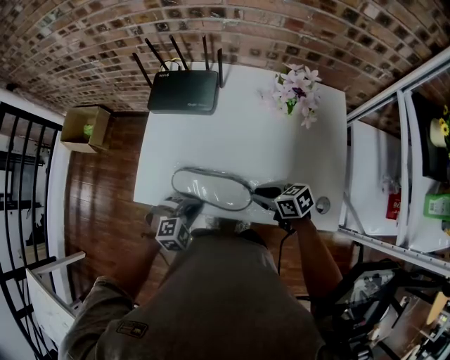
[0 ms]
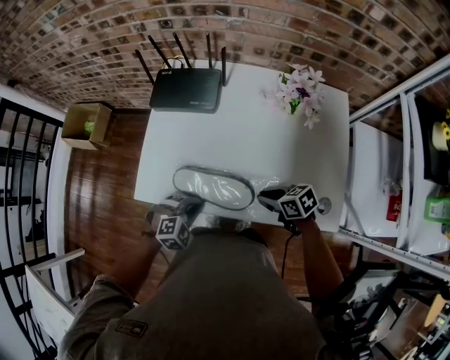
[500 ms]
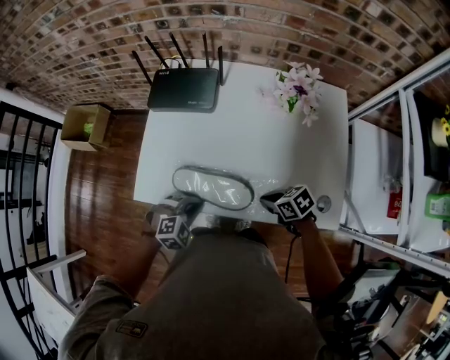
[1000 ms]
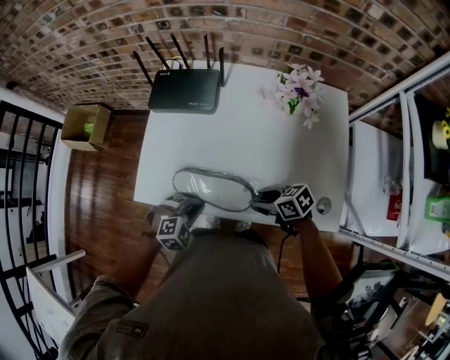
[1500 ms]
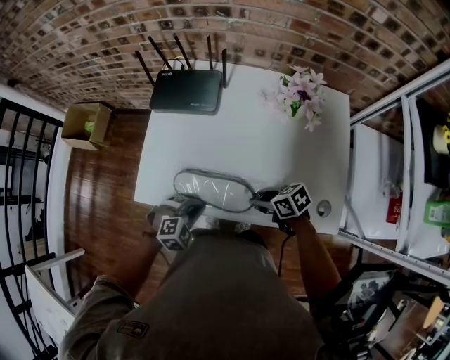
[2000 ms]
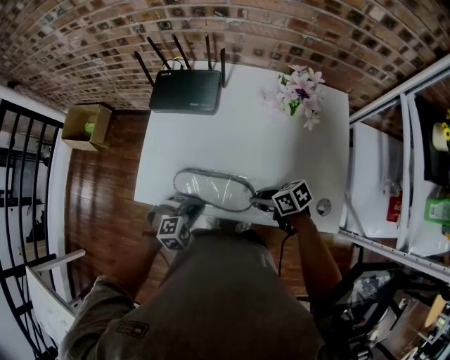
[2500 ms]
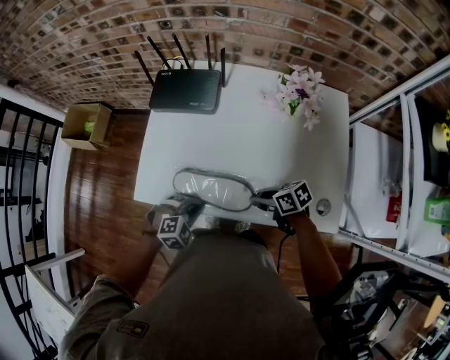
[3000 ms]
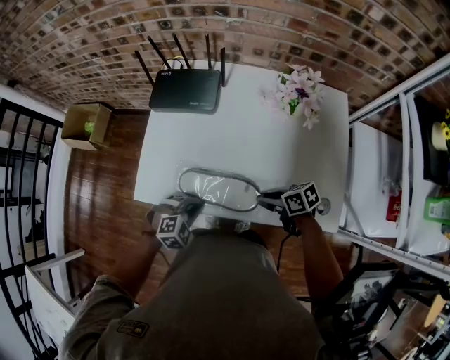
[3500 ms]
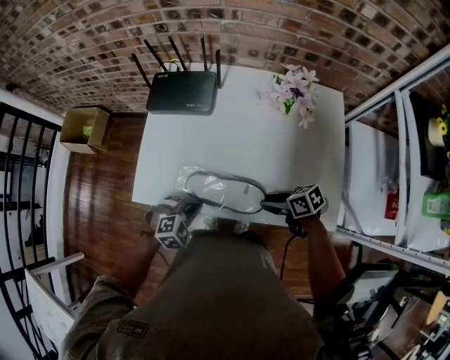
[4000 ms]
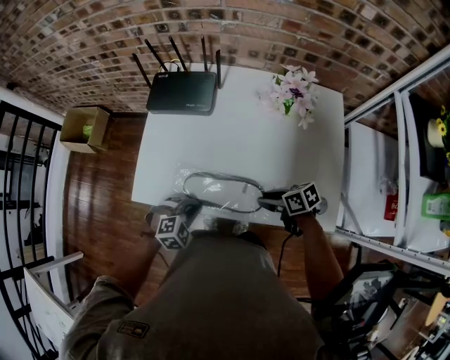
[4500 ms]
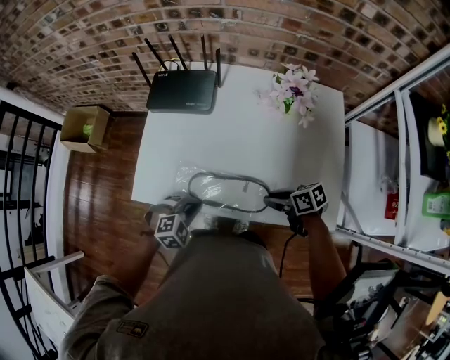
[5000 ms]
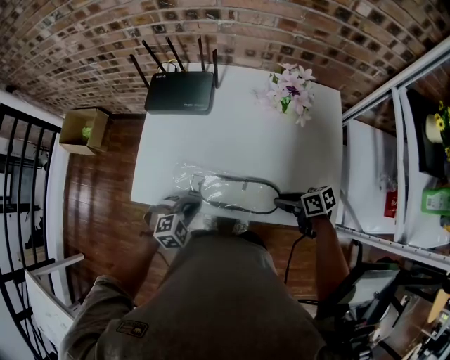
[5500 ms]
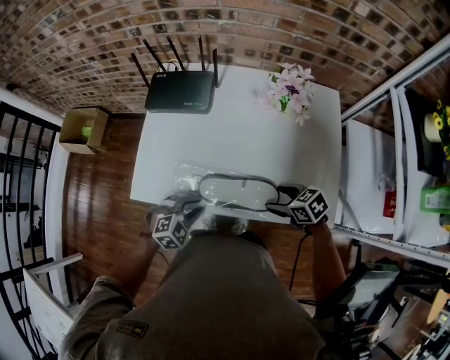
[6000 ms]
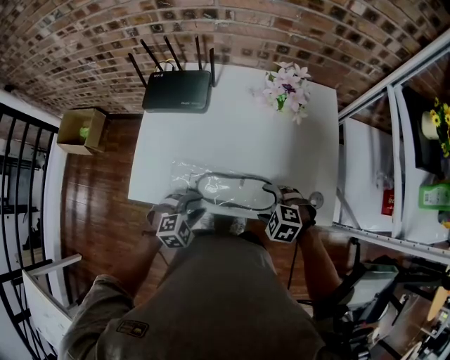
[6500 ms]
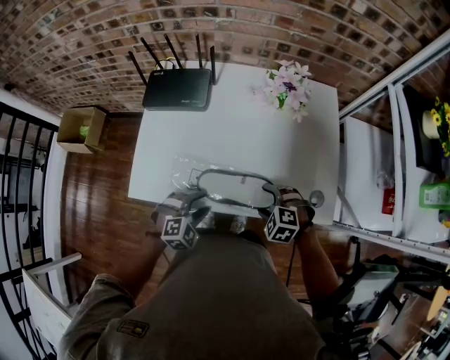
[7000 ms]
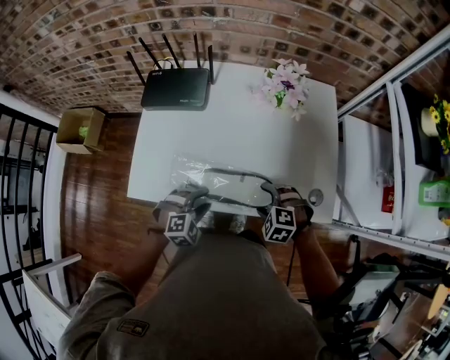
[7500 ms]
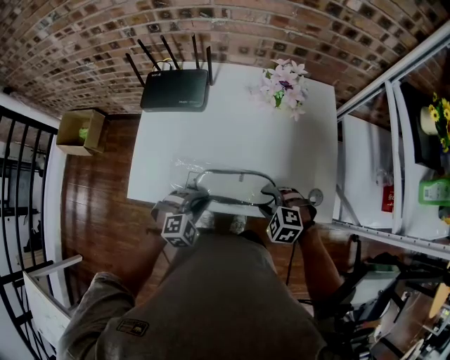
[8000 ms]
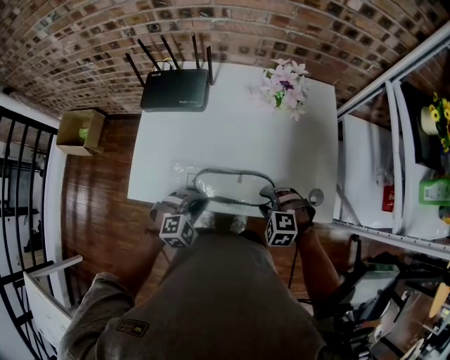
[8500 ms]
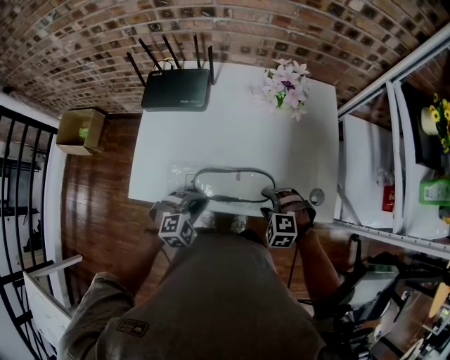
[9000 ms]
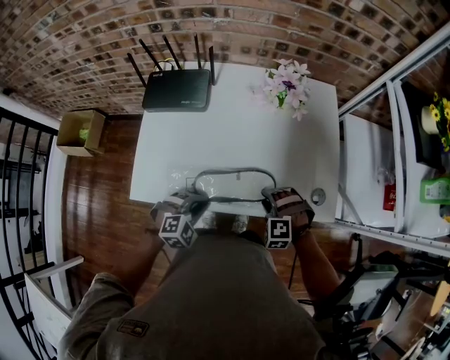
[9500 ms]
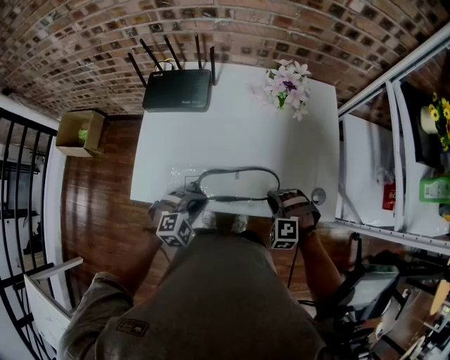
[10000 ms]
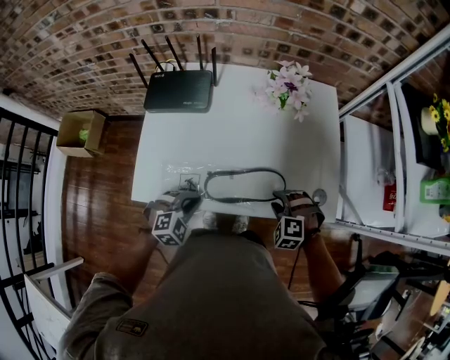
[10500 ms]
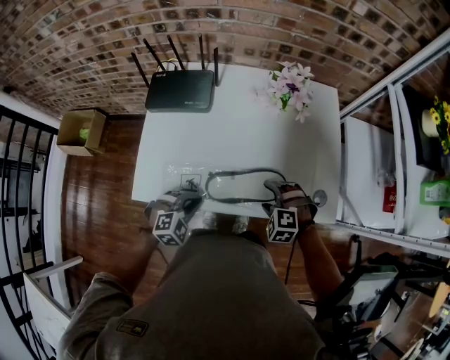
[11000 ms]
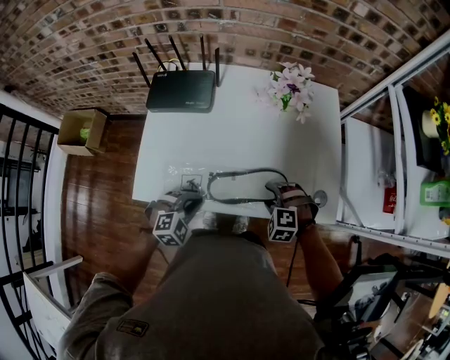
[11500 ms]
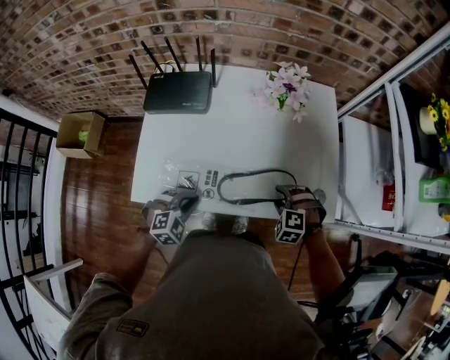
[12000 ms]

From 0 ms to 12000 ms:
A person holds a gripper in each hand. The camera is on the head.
From 0 ms to 2000 ms: There are only small adjustments of the grippers.
From 2000 ms to 4000 ms: The right gripper moves some 5 cm.
From 4000 ms to 6000 ms: The left gripper opens, while the right gripper turns by about 20 degrees, and opens up.
From 6000 ms to 8000 ms: The right gripper rolls counterclockwise, seen from behind, by roughly 50 degrees. Meanwhile the left gripper opens, then closes once more.
From 8000 ms to 10000 ms: The right gripper swivels some 20 degrees.
From 10000 ms to 12000 ms: The grippers stay close to where they were, moving slightly.

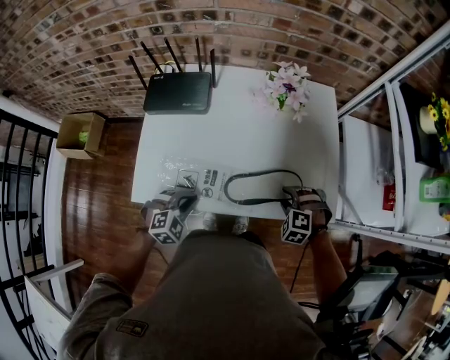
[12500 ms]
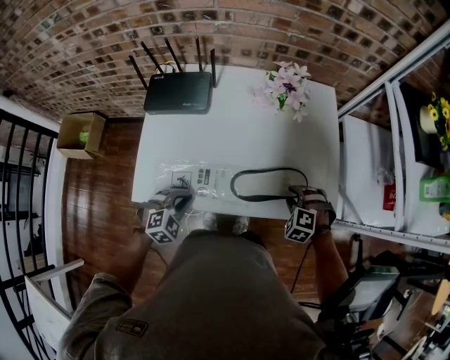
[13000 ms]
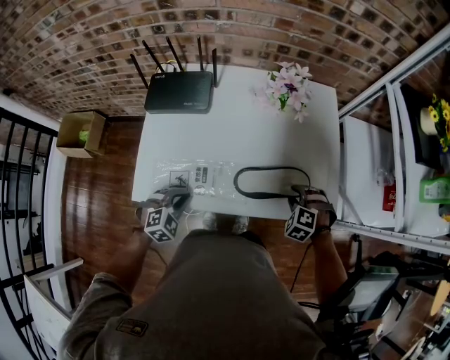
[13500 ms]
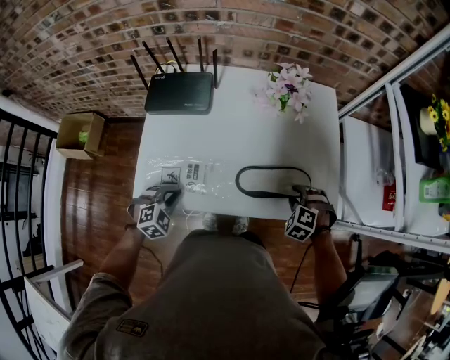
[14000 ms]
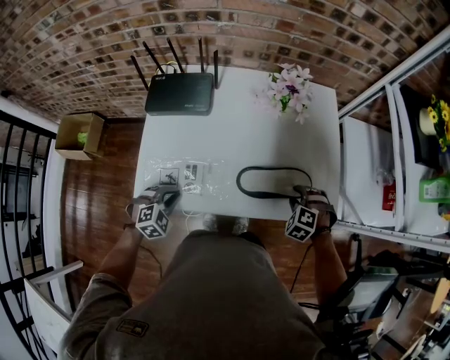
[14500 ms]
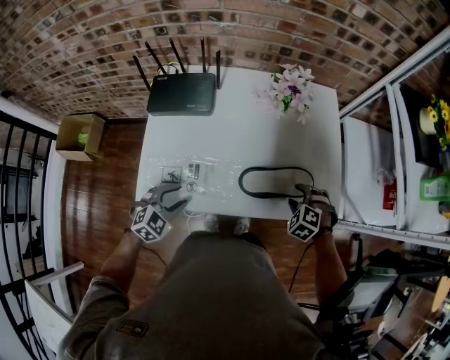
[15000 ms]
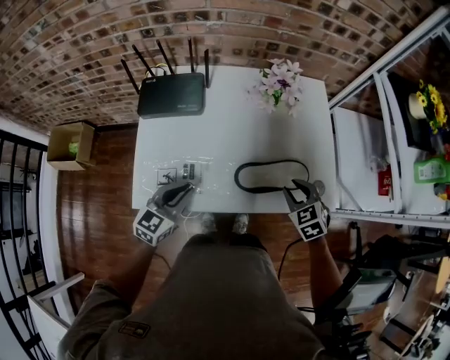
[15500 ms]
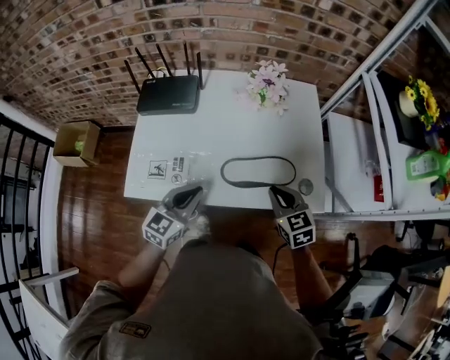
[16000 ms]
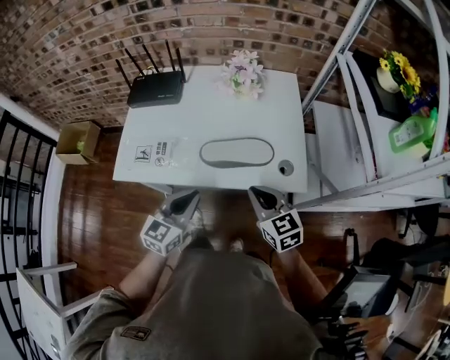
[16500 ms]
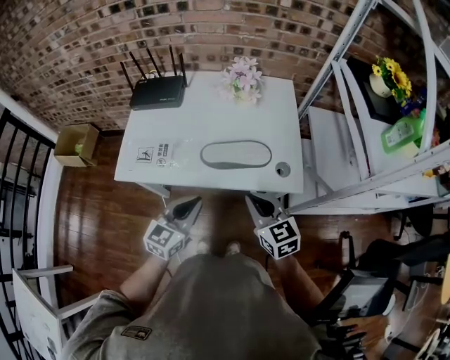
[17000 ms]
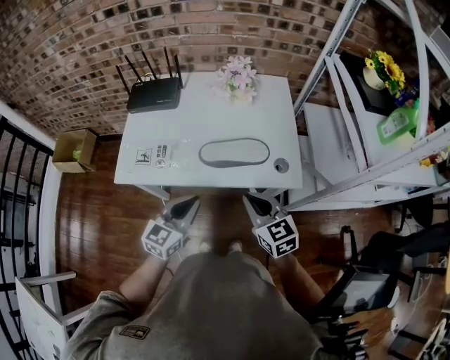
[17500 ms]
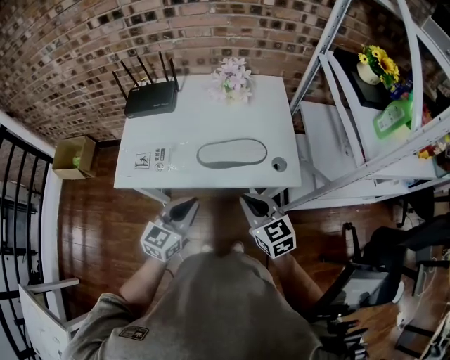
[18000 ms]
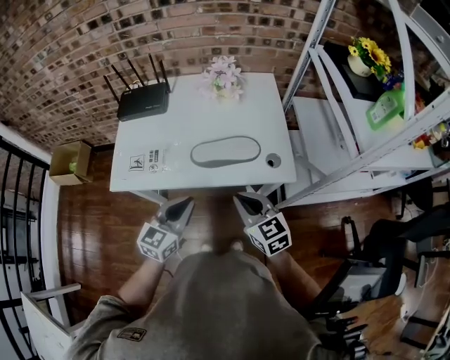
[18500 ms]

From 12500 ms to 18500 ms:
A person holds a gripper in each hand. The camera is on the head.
From 12500 ms to 14500 ms: The left gripper travels to the left by some 5 cm.
From 14500 ms to 16500 ms: The left gripper goes some 25 cm to the right and upward, tilts its fingers about 40 degrees upward, and opens, then closes again. The right gripper travels upward and backward by some 20 cm, angles its fingers upward, by roughly 40 degrees, and closes up.
From 16500 ms to 18500 ms: The right gripper ends up approximately 5 cm from where it was.

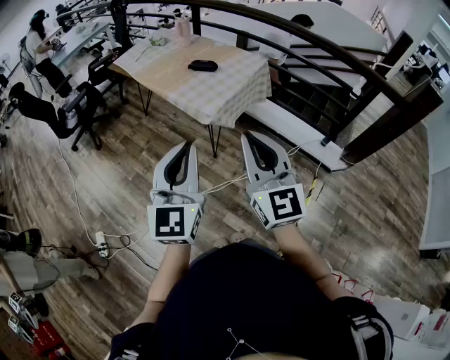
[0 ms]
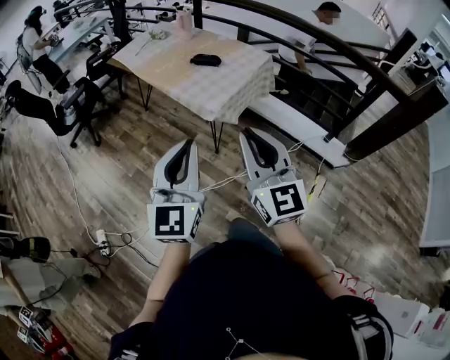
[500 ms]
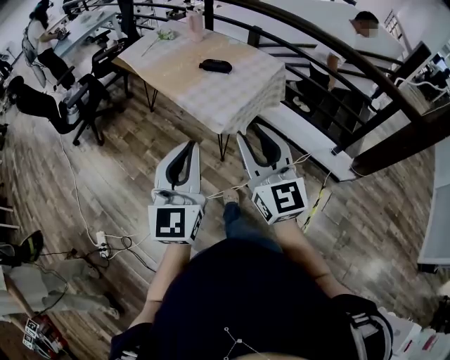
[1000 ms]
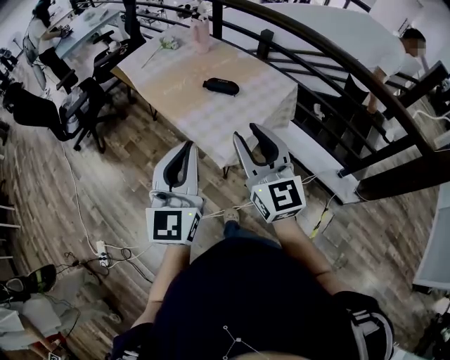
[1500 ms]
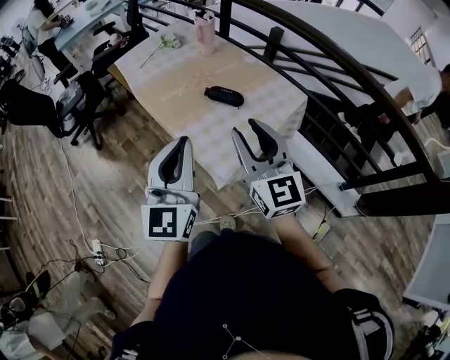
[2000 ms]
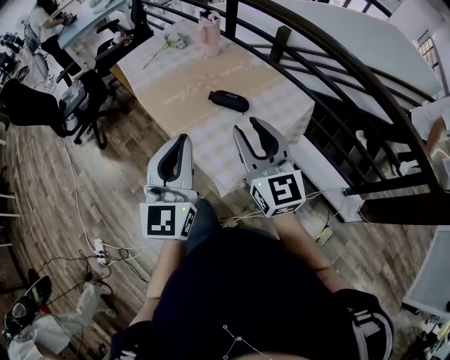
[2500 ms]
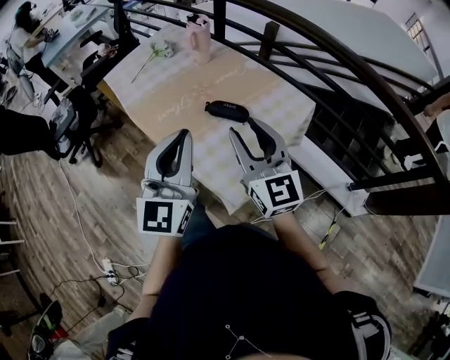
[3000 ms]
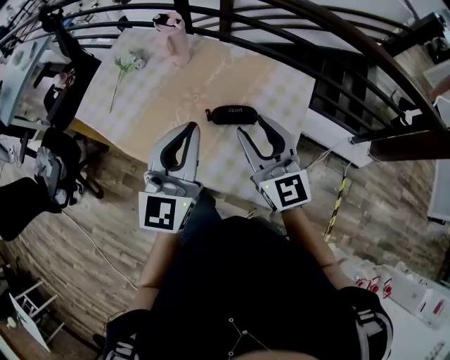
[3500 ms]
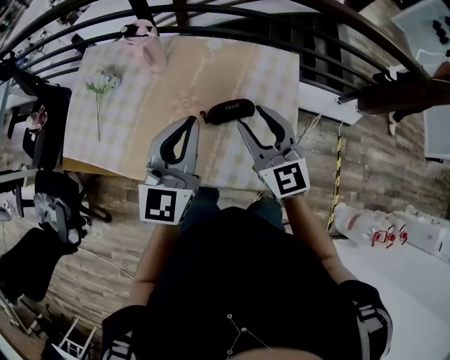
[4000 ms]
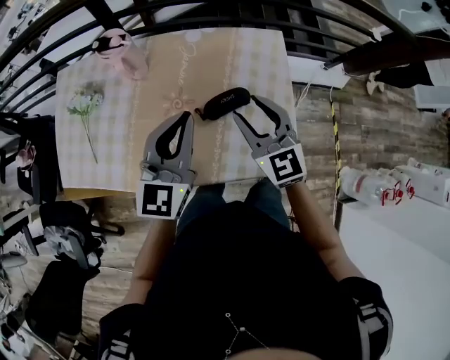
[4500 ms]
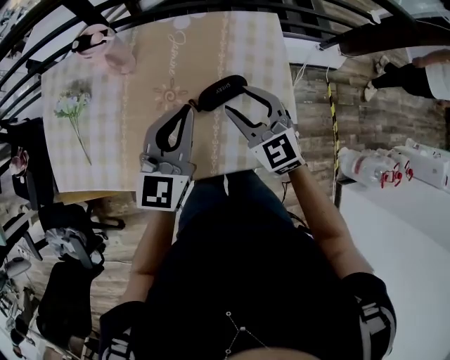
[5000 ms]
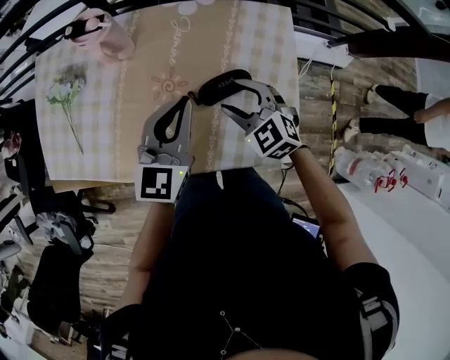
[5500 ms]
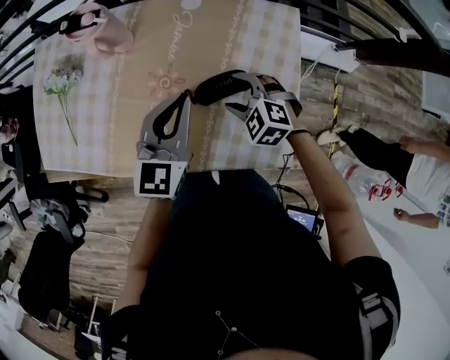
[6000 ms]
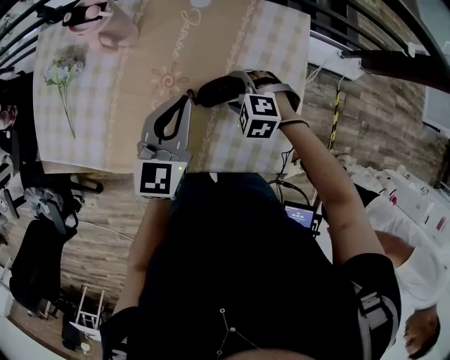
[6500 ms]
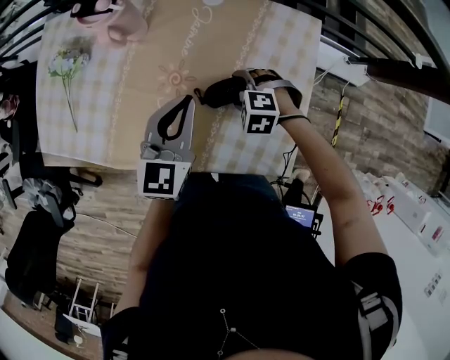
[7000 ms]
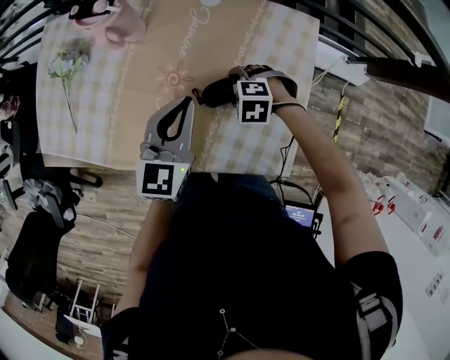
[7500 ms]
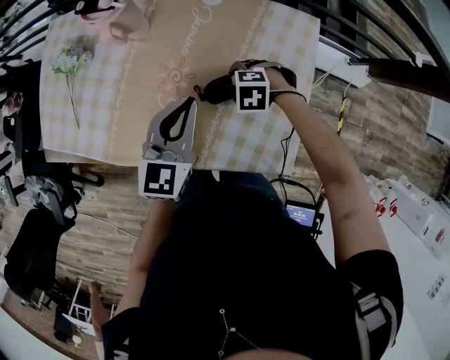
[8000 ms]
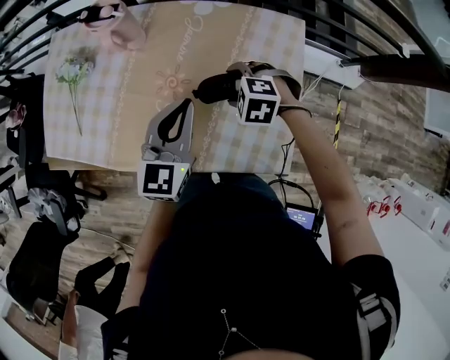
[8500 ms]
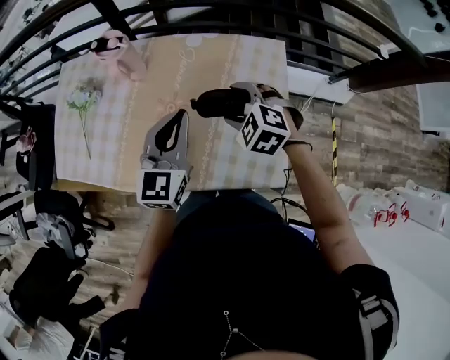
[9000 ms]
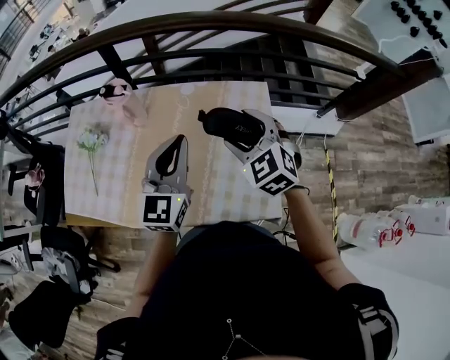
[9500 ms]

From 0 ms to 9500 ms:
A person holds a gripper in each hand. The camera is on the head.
From 0 ms to 2000 ms: The two grippers go about 40 cm forward.
From 2000 ms to 4000 ms: The right gripper moves approximately 30 cm, and rotates roughly 40 degrees, while the left gripper moves approximately 35 cm, and changes its angle by approximately 50 degrees.
From 4000 ms to 5500 ms: The left gripper shifts roughly 10 cm downward and forward. Meanwhile the right gripper is displaced downward by some 15 cm, and angles its fingers downward, by approximately 30 degrees.
From 5500 ms to 7500 ms: The right gripper shifts approximately 15 cm downward, and tips its fingers downward by approximately 30 degrees.
From 7500 ms to 9500 ms: The right gripper shifts some 30 cm upward, and tilts its fingers some 40 degrees upward; the left gripper moves upward, some 15 cm.
